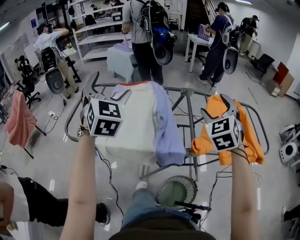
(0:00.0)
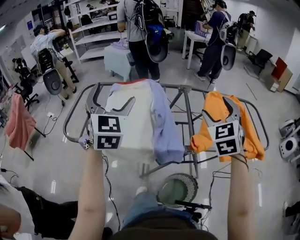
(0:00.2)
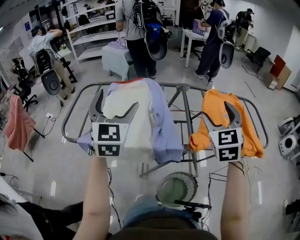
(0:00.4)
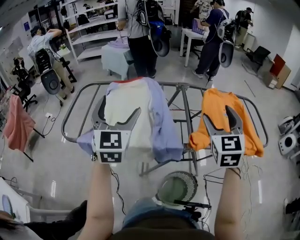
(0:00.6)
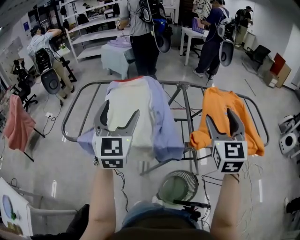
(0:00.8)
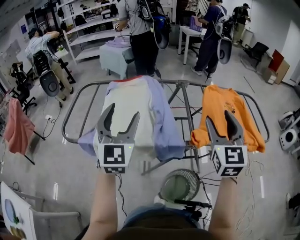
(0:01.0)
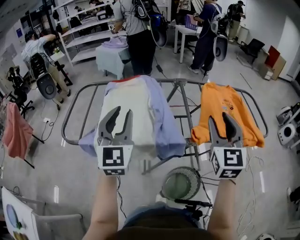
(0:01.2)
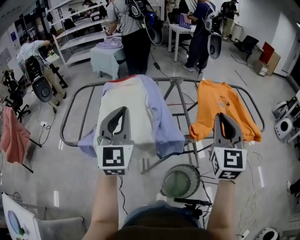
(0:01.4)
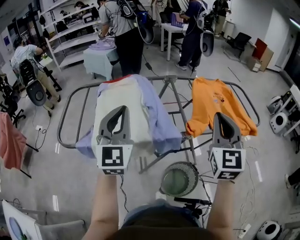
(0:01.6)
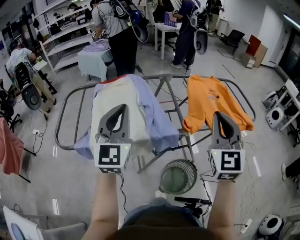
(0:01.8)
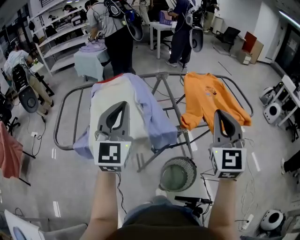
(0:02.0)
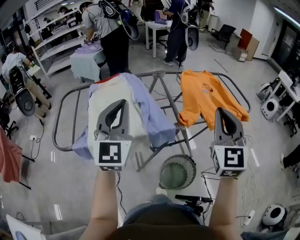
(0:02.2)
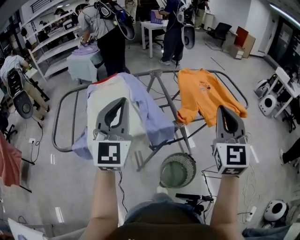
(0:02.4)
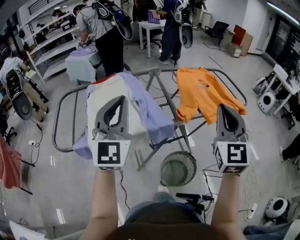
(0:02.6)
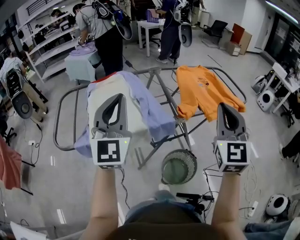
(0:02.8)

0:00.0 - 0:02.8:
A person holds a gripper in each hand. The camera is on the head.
0:00.0 - 0:01.4: The right gripper moves backward, approximately 15 cm, swivels approximately 30 degrees, and closes up, while the left gripper is displaced backward, downward and to the right by roughly 10 cm, changes its angle by about 30 degrees, and closes its fingers.
0:01.4 - 0:02.8: The left gripper shifts by about 5 cm. Meanwhile the right gripper shifts some 10 cm backward.

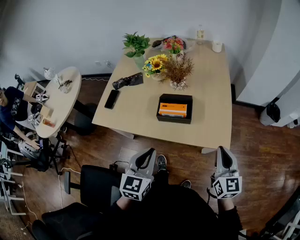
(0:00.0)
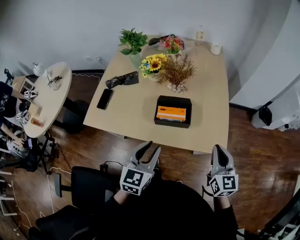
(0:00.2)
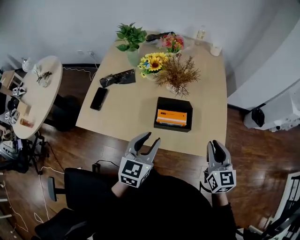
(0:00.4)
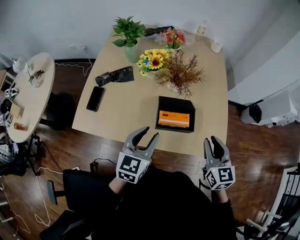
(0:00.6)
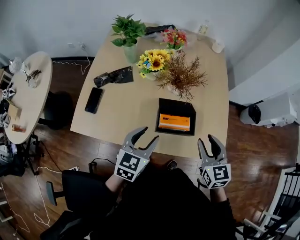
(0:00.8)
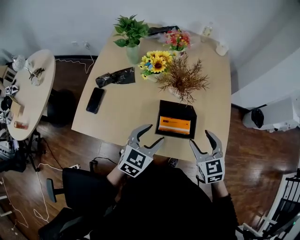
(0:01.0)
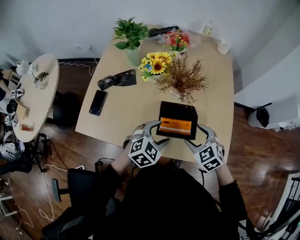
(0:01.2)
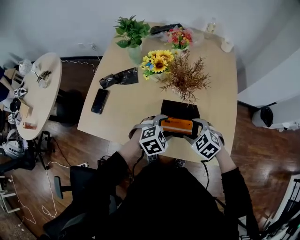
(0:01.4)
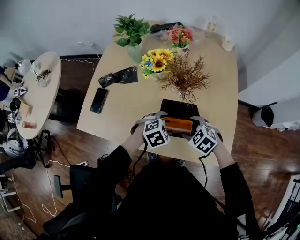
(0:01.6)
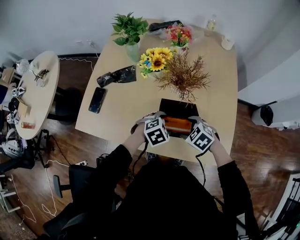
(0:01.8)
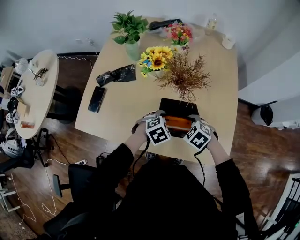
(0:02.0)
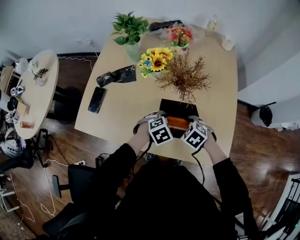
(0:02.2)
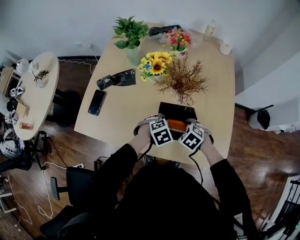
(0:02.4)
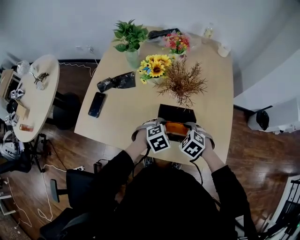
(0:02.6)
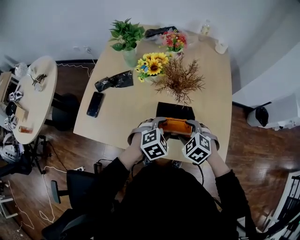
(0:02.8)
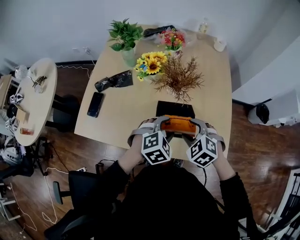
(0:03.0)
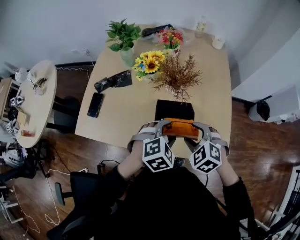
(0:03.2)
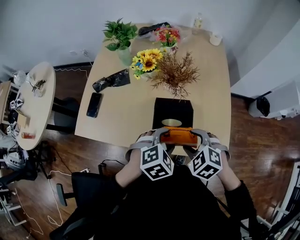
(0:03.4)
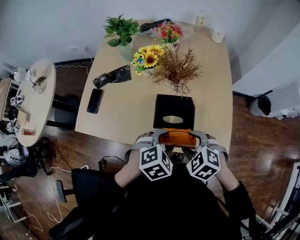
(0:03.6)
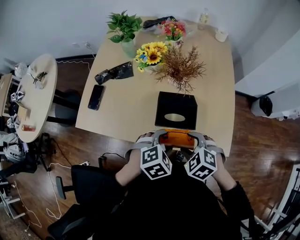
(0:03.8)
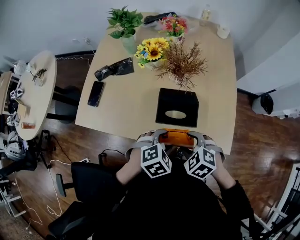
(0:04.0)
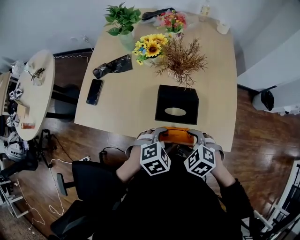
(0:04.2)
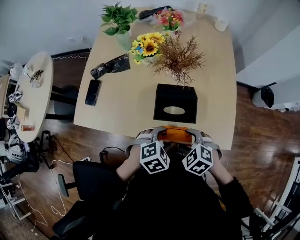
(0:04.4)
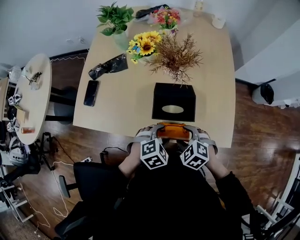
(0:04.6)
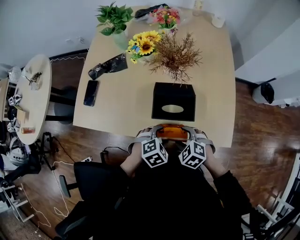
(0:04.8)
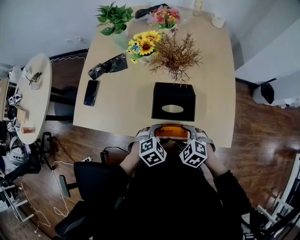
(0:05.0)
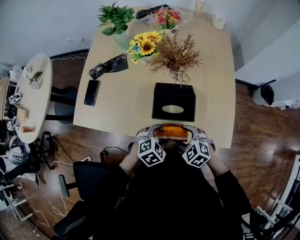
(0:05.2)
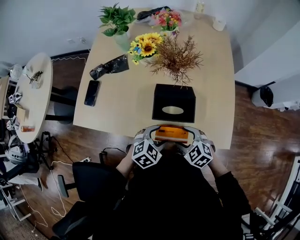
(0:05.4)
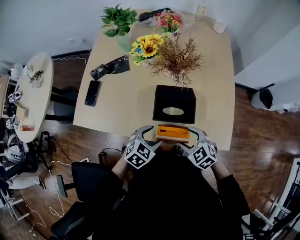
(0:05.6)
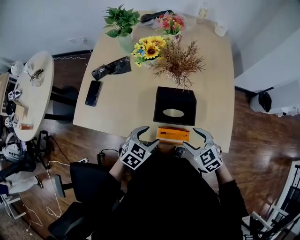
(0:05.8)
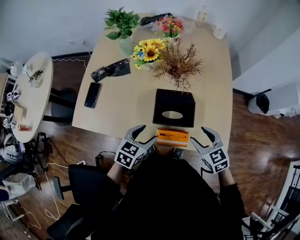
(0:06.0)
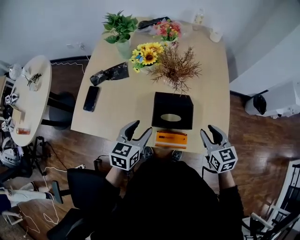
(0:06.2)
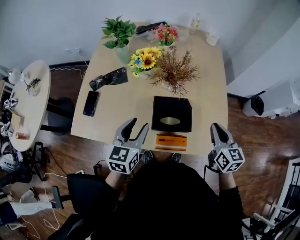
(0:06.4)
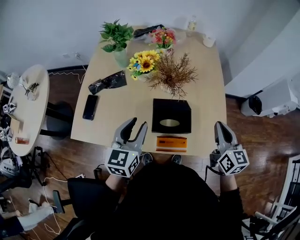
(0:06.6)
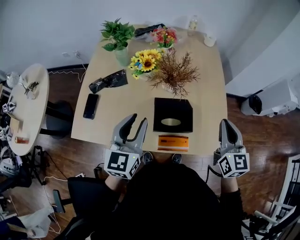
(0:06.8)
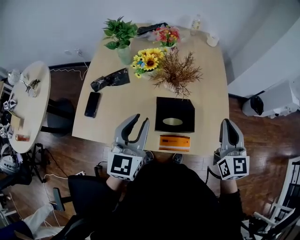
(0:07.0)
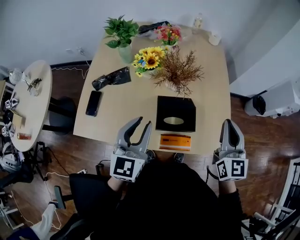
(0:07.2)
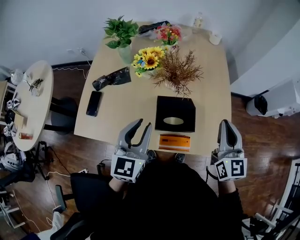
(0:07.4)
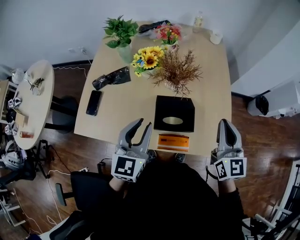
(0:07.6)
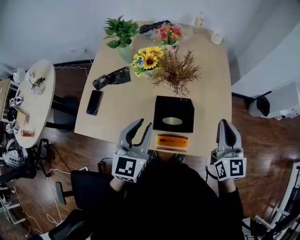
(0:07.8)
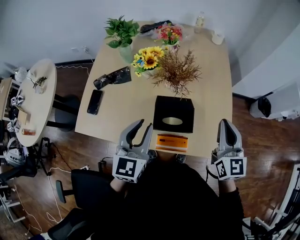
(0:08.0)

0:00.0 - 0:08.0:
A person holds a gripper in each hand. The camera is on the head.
0:00.0 - 0:01.6: The right gripper travels to the left, forward and downward by about 35 cm, tips its fingers downward by some 50 degrees, and opens its fingers. Meanwhile the left gripper shifts roughly 30 cm forward and downward, points its fingers approximately 40 degrees further downward, and opens up.
0:01.6 - 0:03.2: The grippers both shift upward by about 10 cm.
0:03.2 - 0:04.8: Both grippers travel together downward and backward, approximately 15 cm.
0:04.8 - 0:06.4: The left gripper heads upward, to the left and forward, covering approximately 20 cm, and angles its fingers upward, by some 40 degrees, while the right gripper is displaced upward, to the right and forward by roughly 25 cm, tips its fingers upward by roughly 40 degrees, and closes.
0:06.4 - 0:08.0: Both grippers move upward, roughly 10 cm.

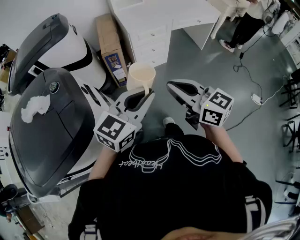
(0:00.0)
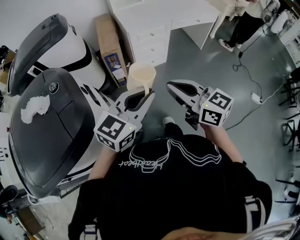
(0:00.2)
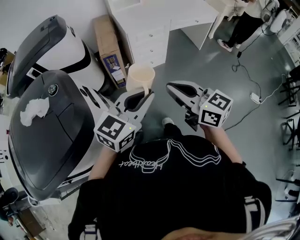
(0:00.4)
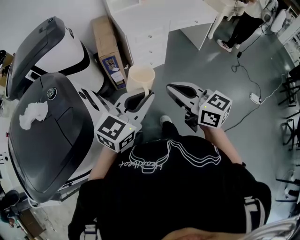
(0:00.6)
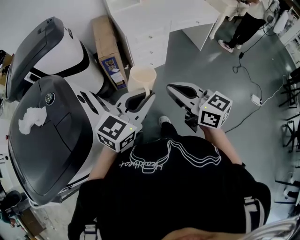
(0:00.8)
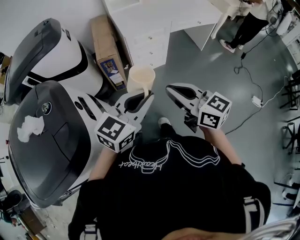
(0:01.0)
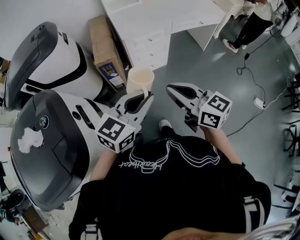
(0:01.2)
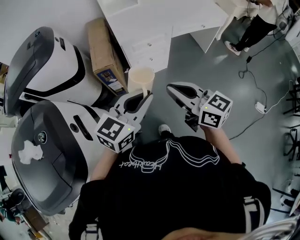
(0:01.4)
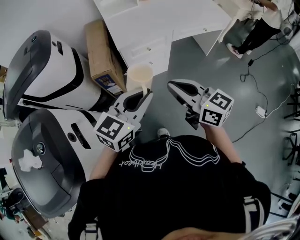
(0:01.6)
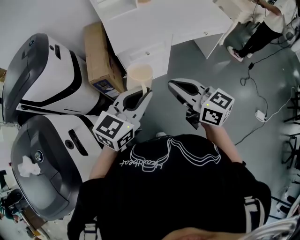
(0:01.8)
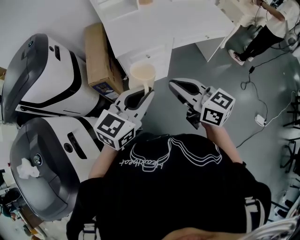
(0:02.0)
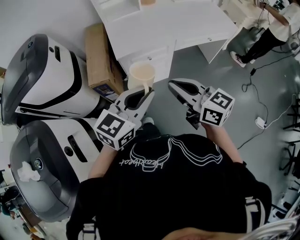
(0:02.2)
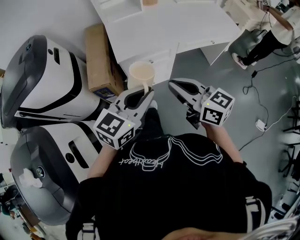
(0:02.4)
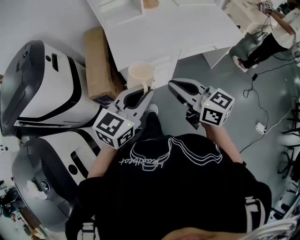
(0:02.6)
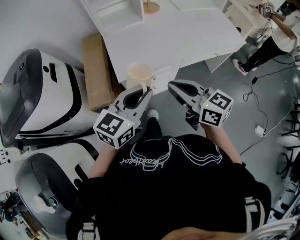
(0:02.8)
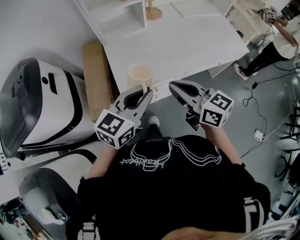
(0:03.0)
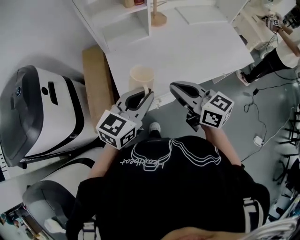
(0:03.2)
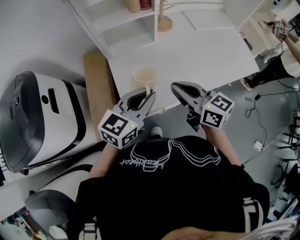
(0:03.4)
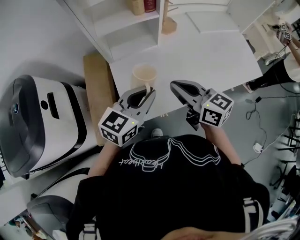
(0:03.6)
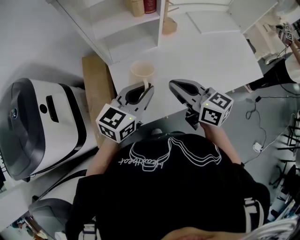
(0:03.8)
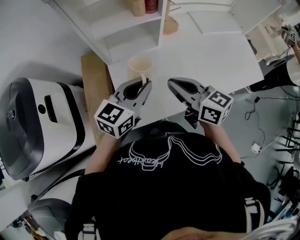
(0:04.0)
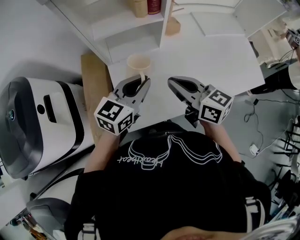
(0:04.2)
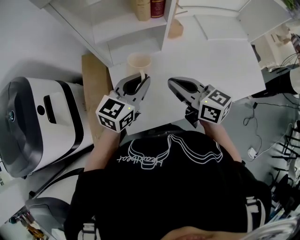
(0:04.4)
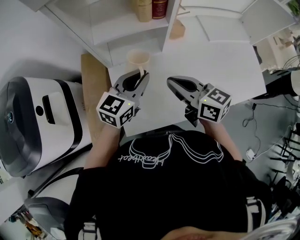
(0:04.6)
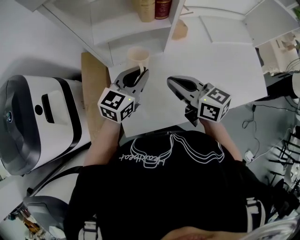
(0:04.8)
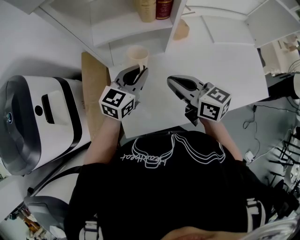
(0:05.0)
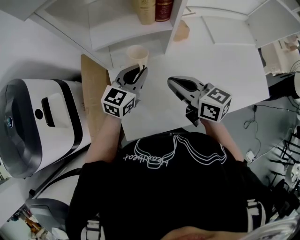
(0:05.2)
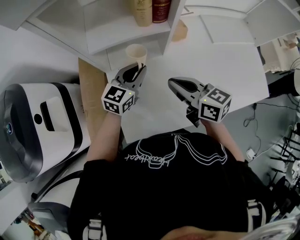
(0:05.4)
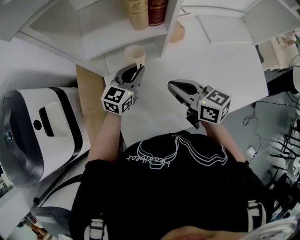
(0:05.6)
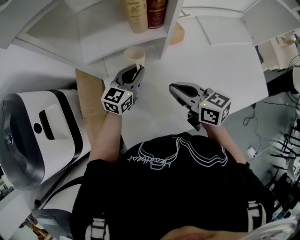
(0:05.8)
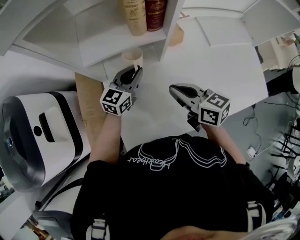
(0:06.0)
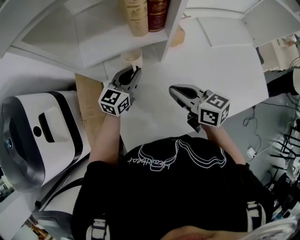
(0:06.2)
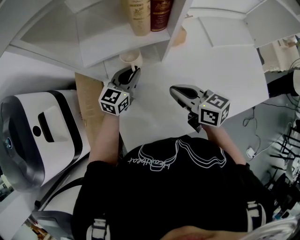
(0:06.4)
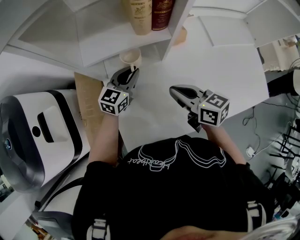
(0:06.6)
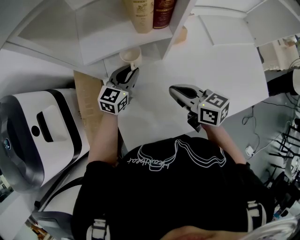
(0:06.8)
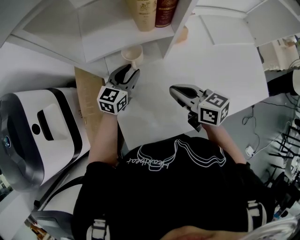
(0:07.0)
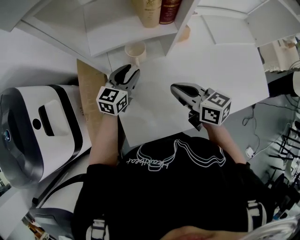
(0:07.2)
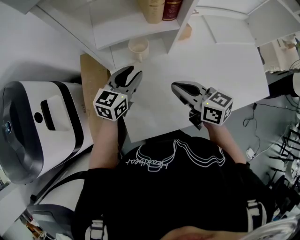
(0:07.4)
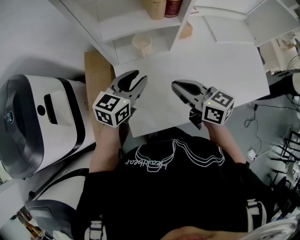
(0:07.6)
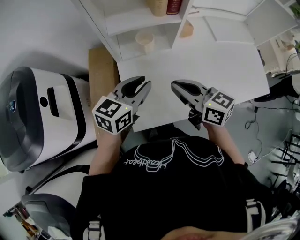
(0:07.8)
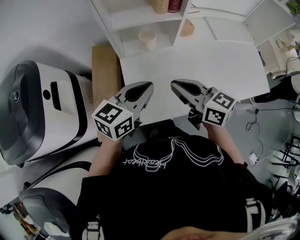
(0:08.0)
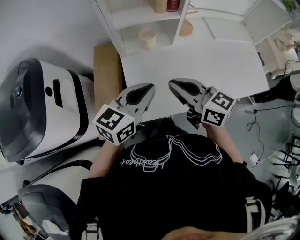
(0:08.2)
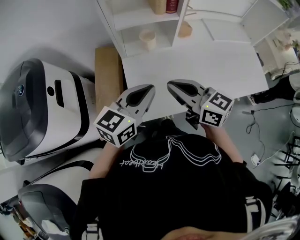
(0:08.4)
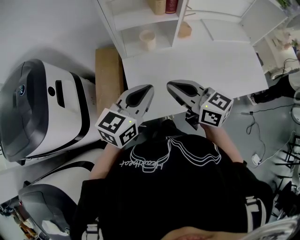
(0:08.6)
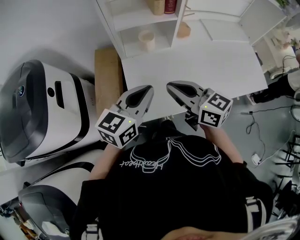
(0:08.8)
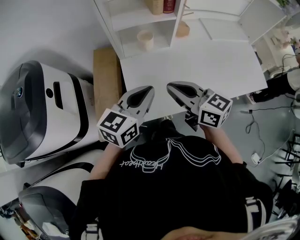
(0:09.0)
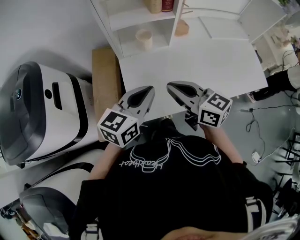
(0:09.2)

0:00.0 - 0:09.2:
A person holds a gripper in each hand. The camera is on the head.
0:00.0 - 0:01.6: Both grippers move forward, some 20 cm.
0:01.6 - 0:03.0: The grippers both shift forward by about 30 cm.
0:03.0 - 0:04.6: The grippers both shift forward by roughly 30 cm.
0:04.6 - 0:06.2: The left gripper heads forward and downward, covering approximately 15 cm; the right gripper goes approximately 5 cm downward.
0:06.2 - 0:07.6: The left gripper heads backward and upward, covering some 10 cm, and opens its fingers; the right gripper moves approximately 5 cm.
0:07.6 - 0:09.2: The right gripper moves backward, about 10 cm. Meanwhile the left gripper moves backward and upward, some 15 cm, and closes its fingers.

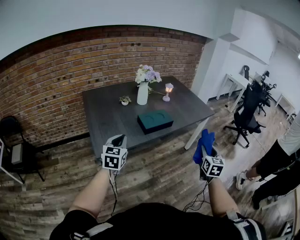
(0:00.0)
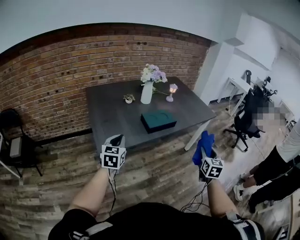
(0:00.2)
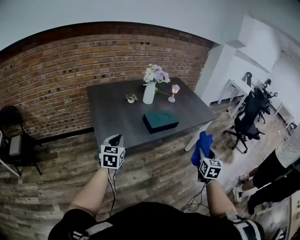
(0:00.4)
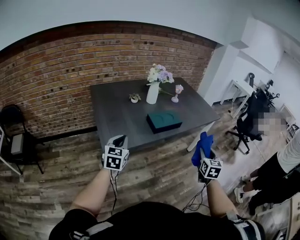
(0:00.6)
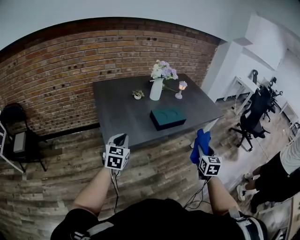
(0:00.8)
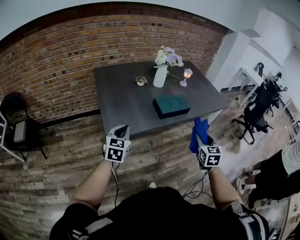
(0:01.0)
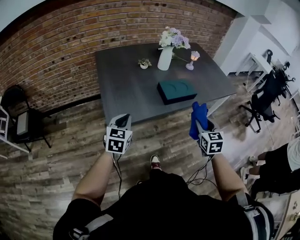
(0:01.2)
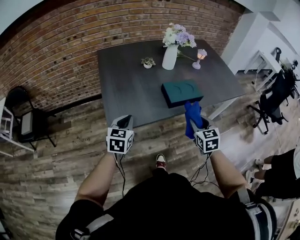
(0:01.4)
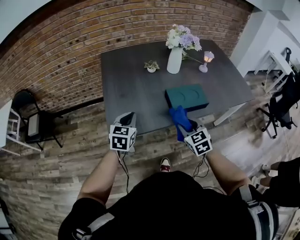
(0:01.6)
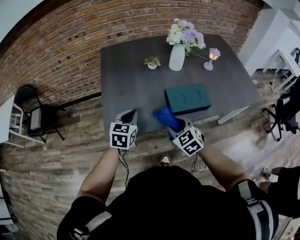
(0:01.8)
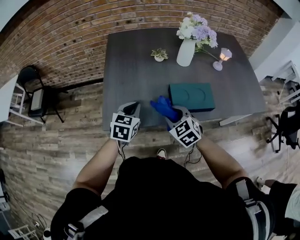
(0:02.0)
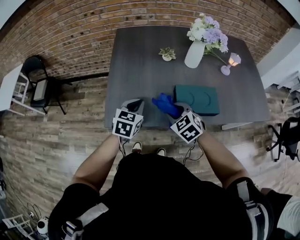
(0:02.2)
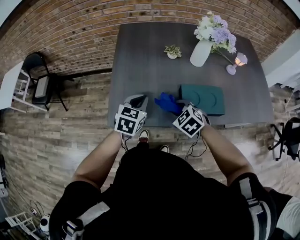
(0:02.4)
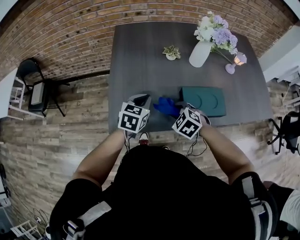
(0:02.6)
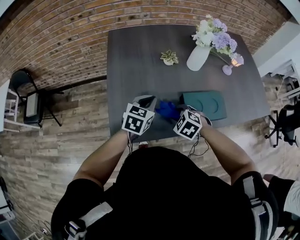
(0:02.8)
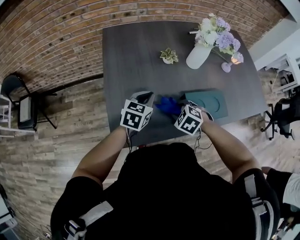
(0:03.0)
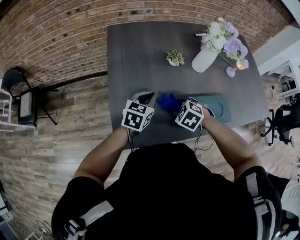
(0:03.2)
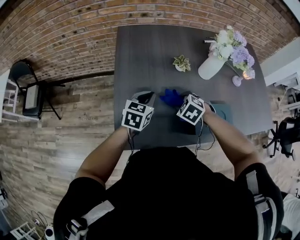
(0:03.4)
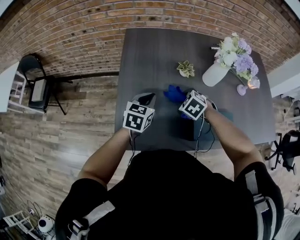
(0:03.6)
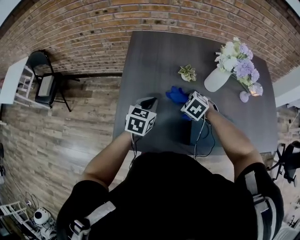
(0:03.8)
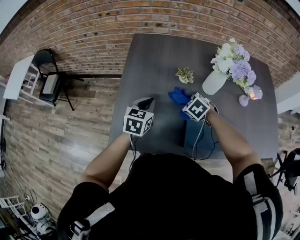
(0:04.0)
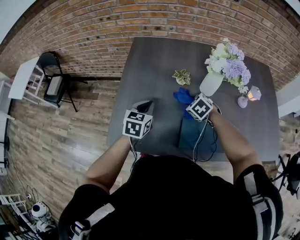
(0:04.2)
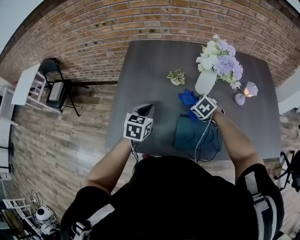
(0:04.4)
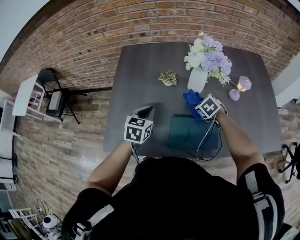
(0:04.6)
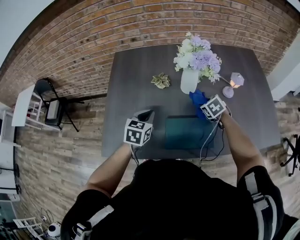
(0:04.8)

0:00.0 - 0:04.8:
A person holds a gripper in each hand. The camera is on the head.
0:00.0 - 0:01.6: The right gripper ends up some 35 cm from where it was, and rotates roughly 50 degrees. Meanwhile the left gripper moves approximately 15 cm.
0:01.6 - 0:03.2: The right gripper is displaced forward and to the left by roughly 20 cm, and angles its fingers downward, by approximately 40 degrees, while the left gripper moves forward, approximately 20 cm.
0:03.2 - 0:04.8: The right gripper moves to the right, some 30 cm, and changes its angle by approximately 30 degrees. The left gripper heads to the right, covering approximately 10 cm.
